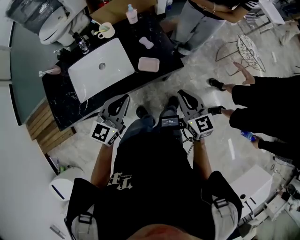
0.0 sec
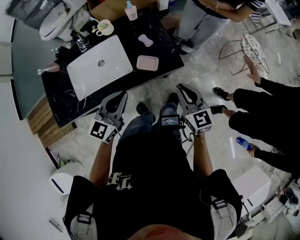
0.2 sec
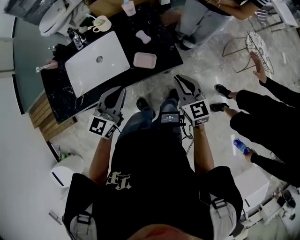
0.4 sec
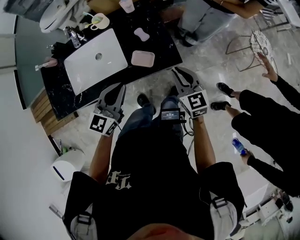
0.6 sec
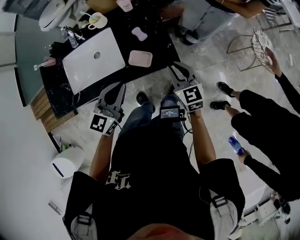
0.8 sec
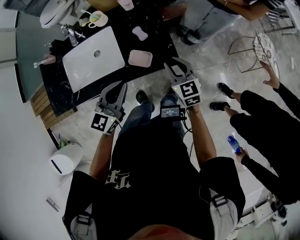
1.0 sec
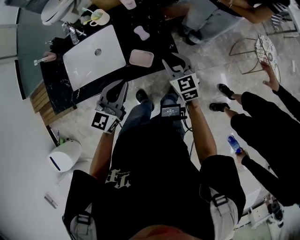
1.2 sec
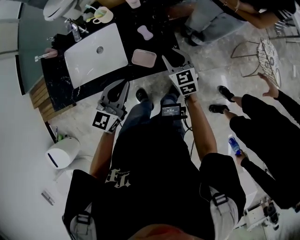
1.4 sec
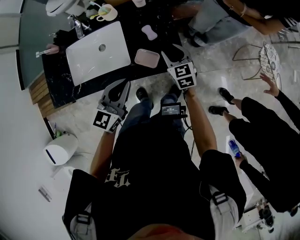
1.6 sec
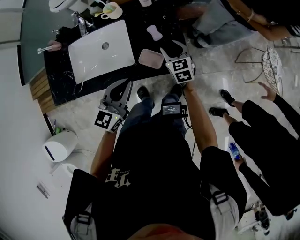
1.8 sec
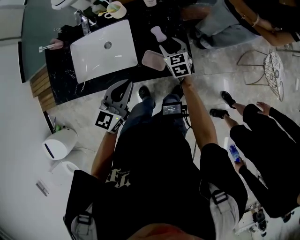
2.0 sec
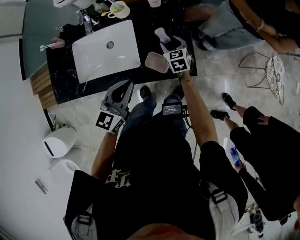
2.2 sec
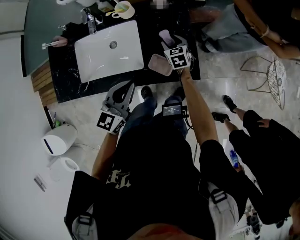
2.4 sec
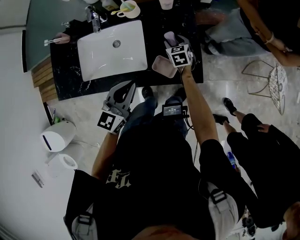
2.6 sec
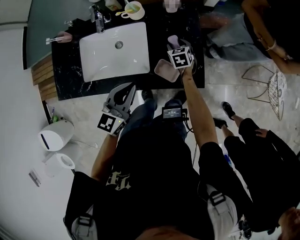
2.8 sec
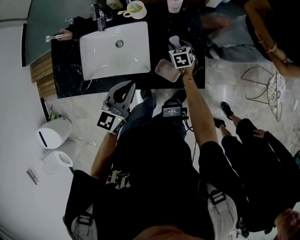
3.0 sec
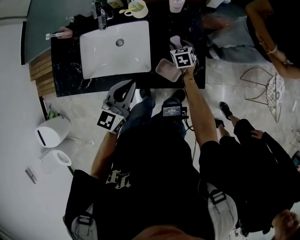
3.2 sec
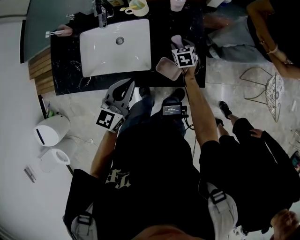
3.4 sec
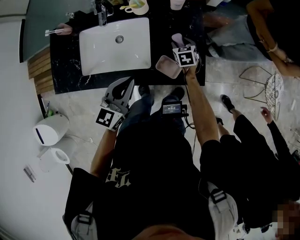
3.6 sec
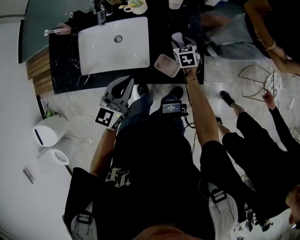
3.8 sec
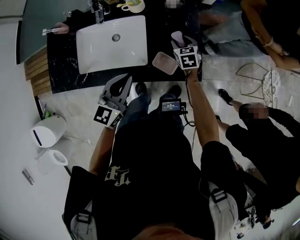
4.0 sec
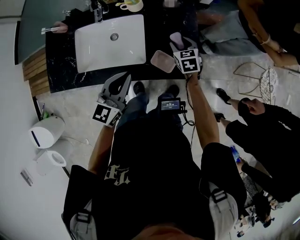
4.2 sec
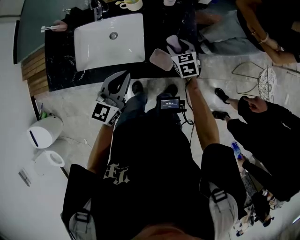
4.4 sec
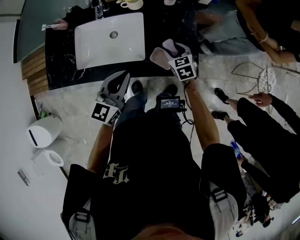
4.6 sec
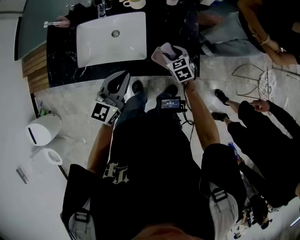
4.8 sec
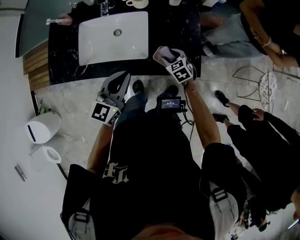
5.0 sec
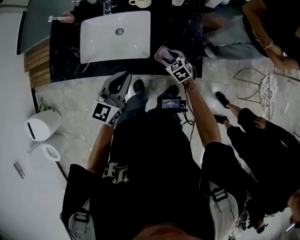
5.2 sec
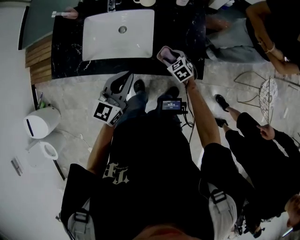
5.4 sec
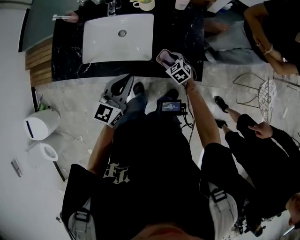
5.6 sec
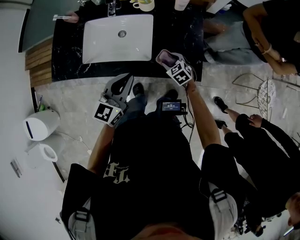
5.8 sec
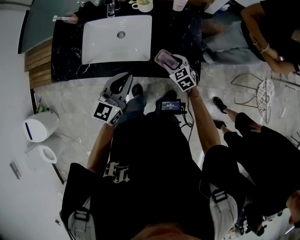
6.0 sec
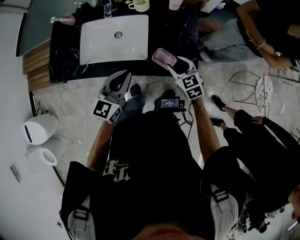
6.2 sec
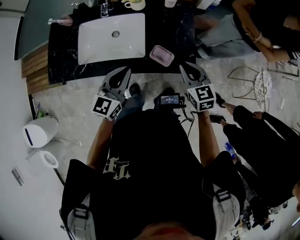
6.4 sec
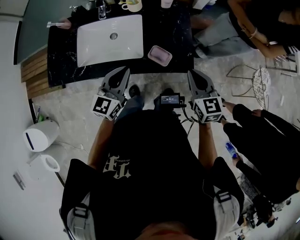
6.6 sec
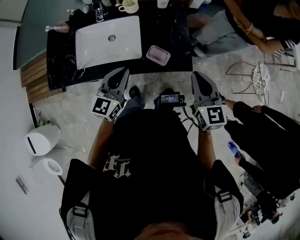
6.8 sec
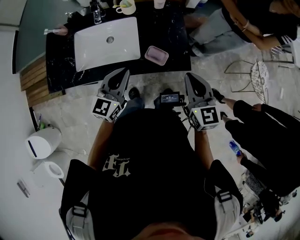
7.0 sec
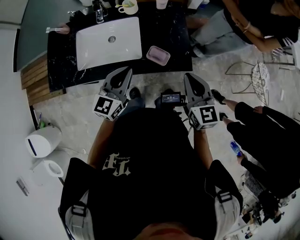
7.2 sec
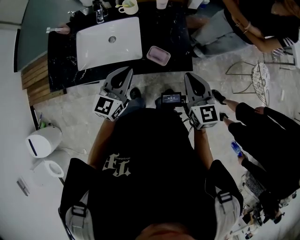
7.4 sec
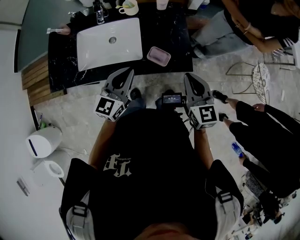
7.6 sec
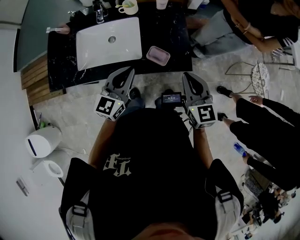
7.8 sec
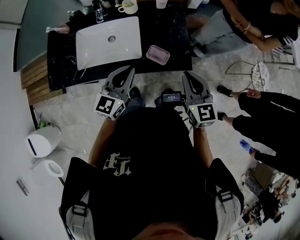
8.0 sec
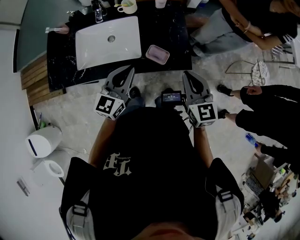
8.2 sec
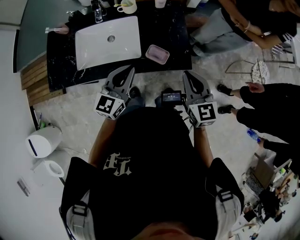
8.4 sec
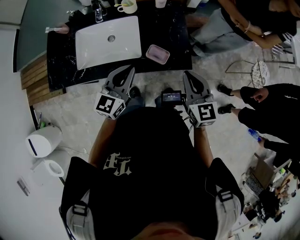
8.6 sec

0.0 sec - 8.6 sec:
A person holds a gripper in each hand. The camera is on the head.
0.0 sec - 1.4 sec: The right gripper travels forward and downward by roughly 25 cm, and opens its fingers; the left gripper goes some 10 cm forward and to the right.
1.4 sec - 2.8 sec: The left gripper is displaced to the left and forward by about 10 cm; the right gripper goes roughly 25 cm forward, downward and to the left, rotates roughly 20 degrees, and opens its fingers.
2.8 sec - 4.4 sec: The right gripper moves upward and backward, about 10 cm.
4.4 sec - 5.8 sec: The right gripper heads downward, to the left and backward, covering approximately 10 cm, and changes its angle by approximately 30 degrees.
5.8 sec - 7.2 sec: The right gripper goes some 30 cm upward and backward, tips its fingers upward by some 30 degrees, and closes.
7.2 sec - 8.6 sec: The two grippers keep their place.

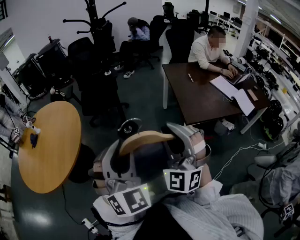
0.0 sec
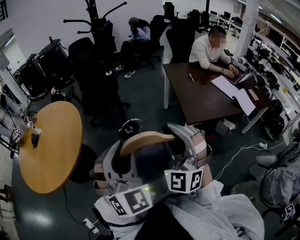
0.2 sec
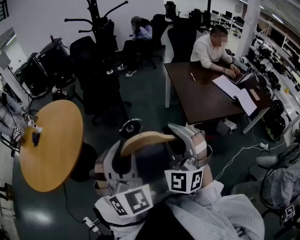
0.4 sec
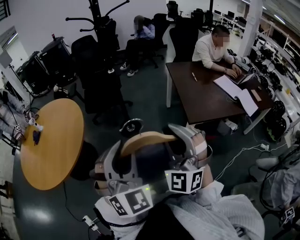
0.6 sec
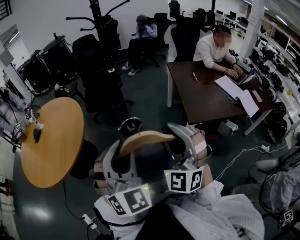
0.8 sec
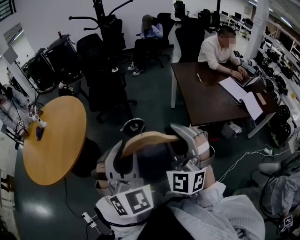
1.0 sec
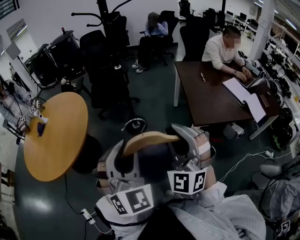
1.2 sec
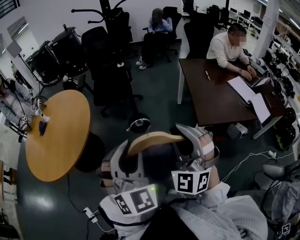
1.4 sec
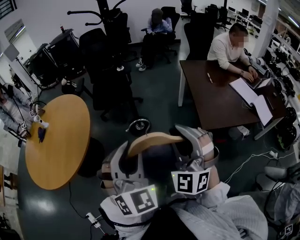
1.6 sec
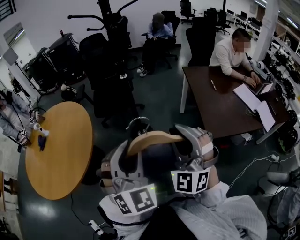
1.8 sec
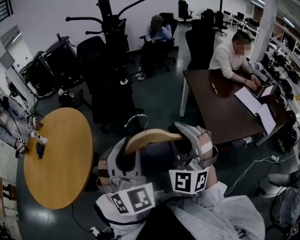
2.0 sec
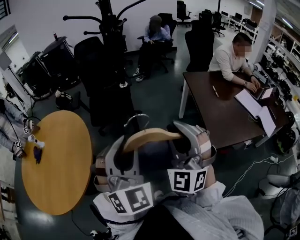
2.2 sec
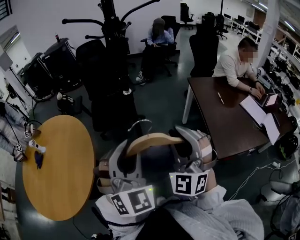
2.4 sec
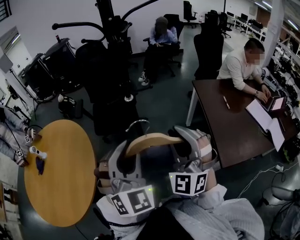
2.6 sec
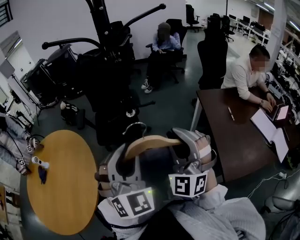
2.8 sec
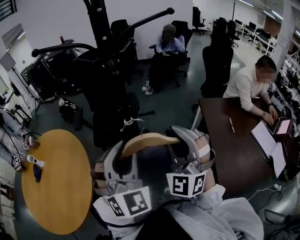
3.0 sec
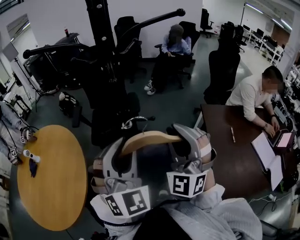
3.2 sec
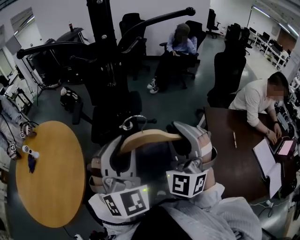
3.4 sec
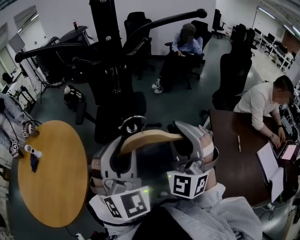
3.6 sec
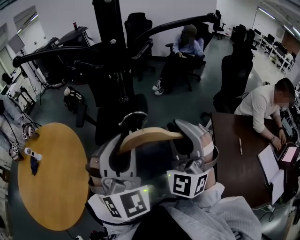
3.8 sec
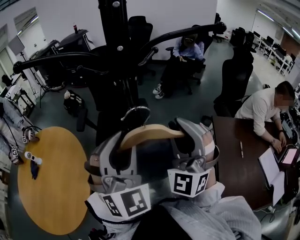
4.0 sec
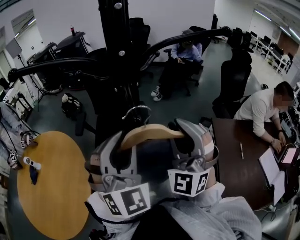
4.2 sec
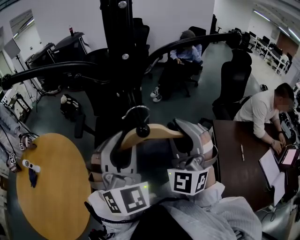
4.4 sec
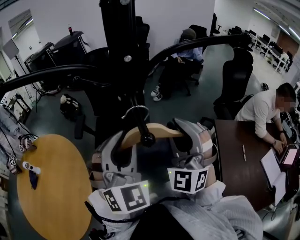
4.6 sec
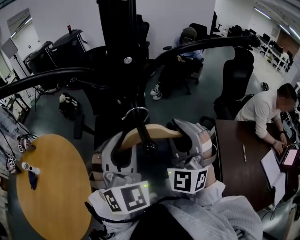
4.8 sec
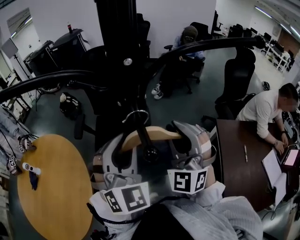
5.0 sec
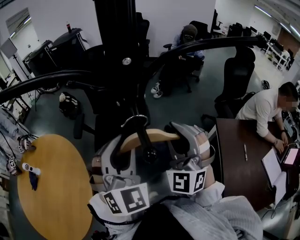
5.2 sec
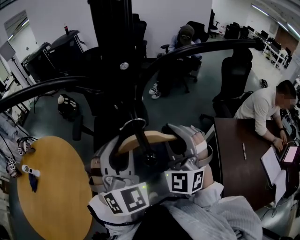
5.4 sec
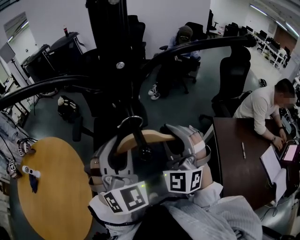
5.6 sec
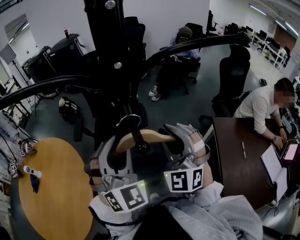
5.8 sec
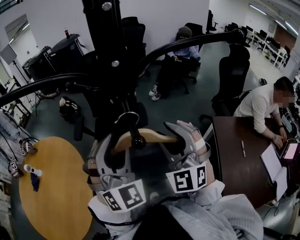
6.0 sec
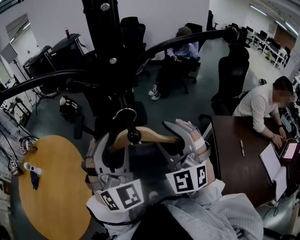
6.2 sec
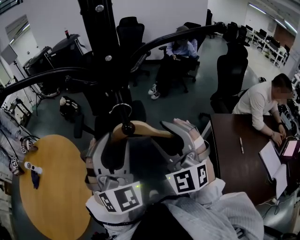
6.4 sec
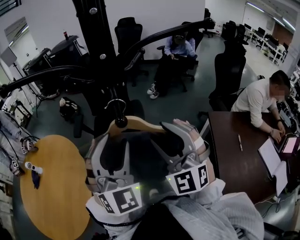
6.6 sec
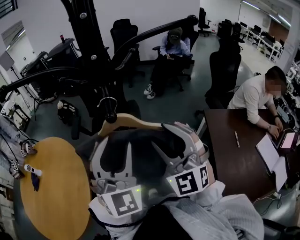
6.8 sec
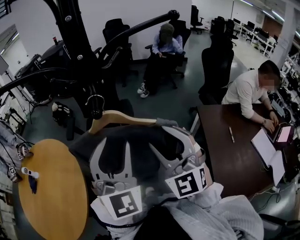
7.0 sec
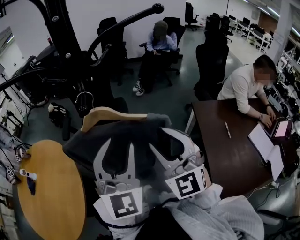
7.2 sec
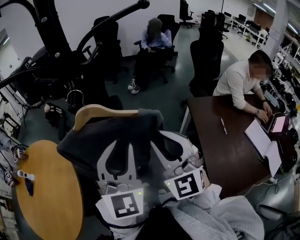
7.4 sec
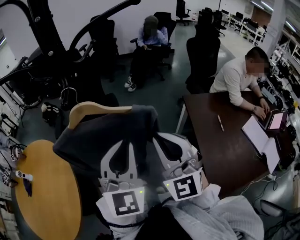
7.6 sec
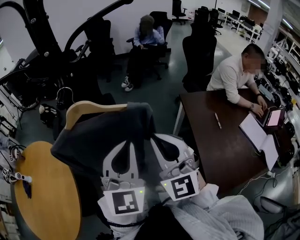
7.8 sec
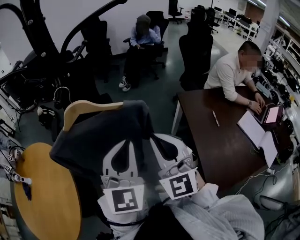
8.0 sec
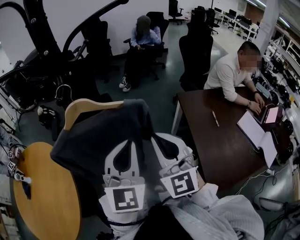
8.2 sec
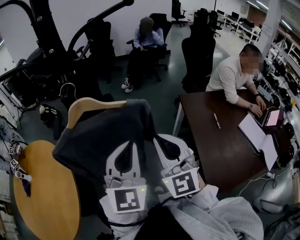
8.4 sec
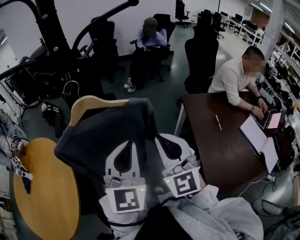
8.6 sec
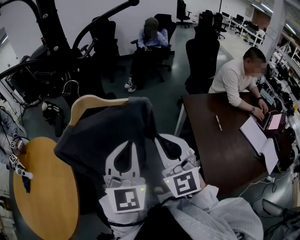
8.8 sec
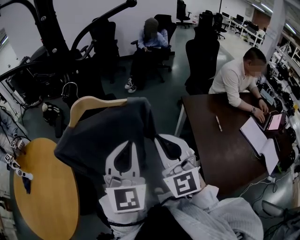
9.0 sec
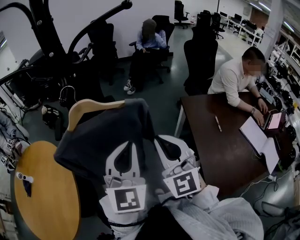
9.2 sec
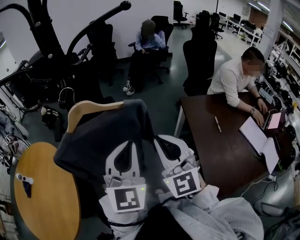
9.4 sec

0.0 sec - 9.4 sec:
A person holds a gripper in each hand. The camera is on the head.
0.0 sec - 1.6 sec: The two grippers go roughly 10 cm forward.
1.6 sec - 3.2 sec: Both grippers are carried forward, about 50 cm.
3.2 sec - 4.8 sec: Both grippers travel together forward, about 20 cm.
4.8 sec - 6.2 sec: The right gripper ends up about 5 cm from where it was, and opens.
6.2 sec - 7.8 sec: The right gripper moves backward and to the right, about 20 cm, changes its angle by roughly 30 degrees, and closes its fingers, while the left gripper heads to the right and backward, covering some 20 cm, turns by about 40 degrees, and closes its fingers.
7.8 sec - 9.4 sec: There are only small adjustments of the grippers.

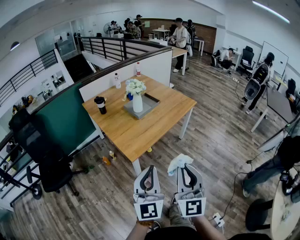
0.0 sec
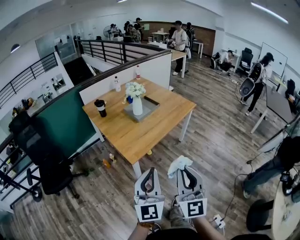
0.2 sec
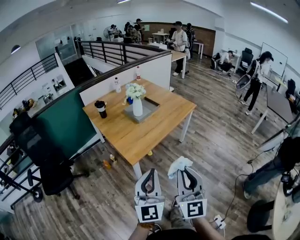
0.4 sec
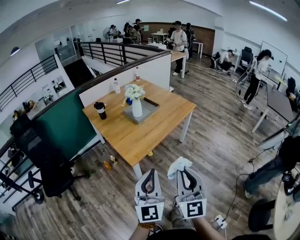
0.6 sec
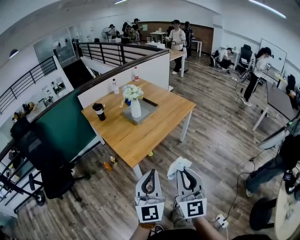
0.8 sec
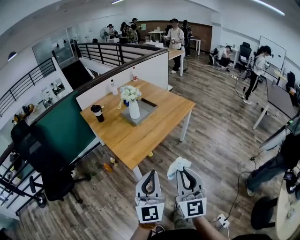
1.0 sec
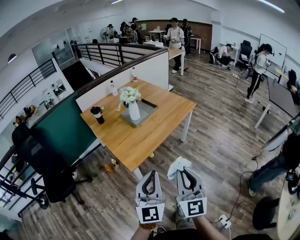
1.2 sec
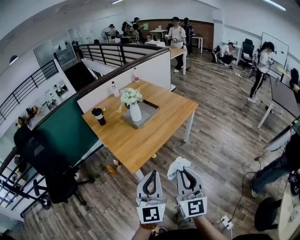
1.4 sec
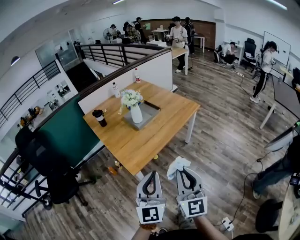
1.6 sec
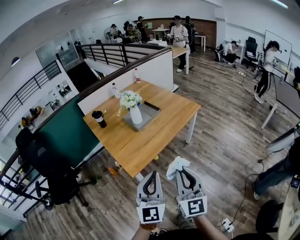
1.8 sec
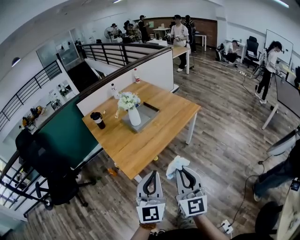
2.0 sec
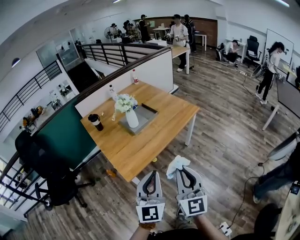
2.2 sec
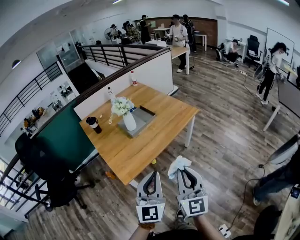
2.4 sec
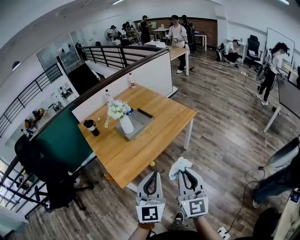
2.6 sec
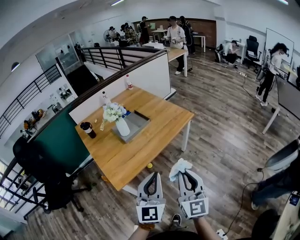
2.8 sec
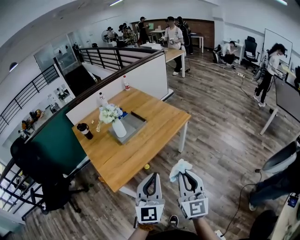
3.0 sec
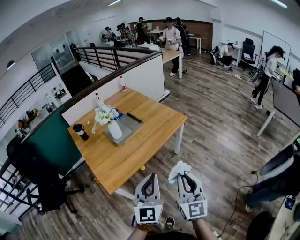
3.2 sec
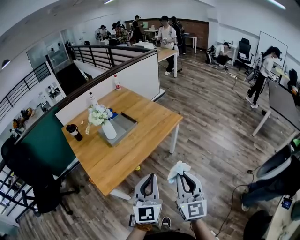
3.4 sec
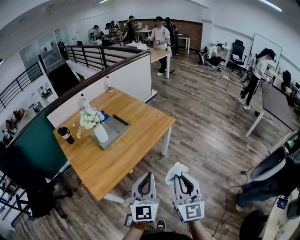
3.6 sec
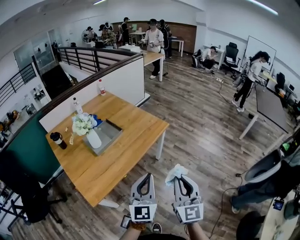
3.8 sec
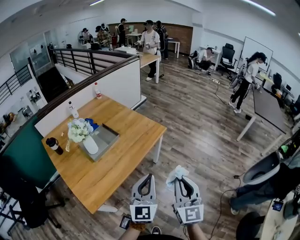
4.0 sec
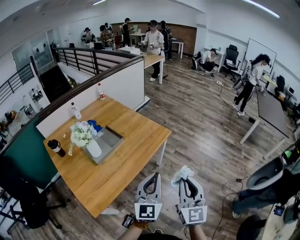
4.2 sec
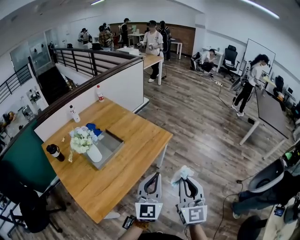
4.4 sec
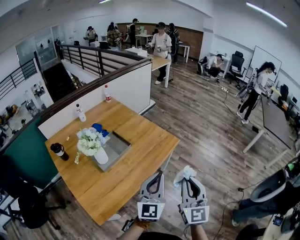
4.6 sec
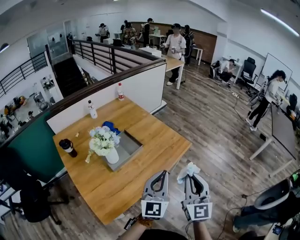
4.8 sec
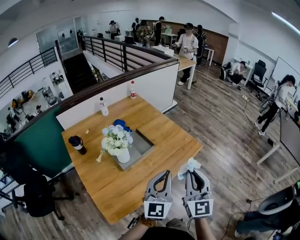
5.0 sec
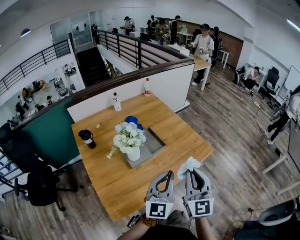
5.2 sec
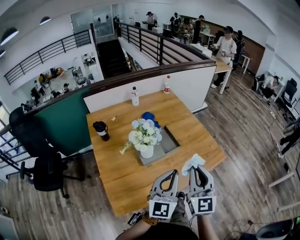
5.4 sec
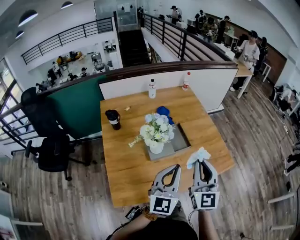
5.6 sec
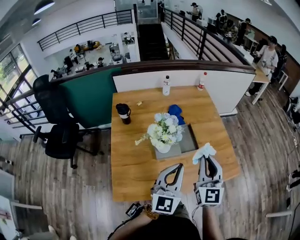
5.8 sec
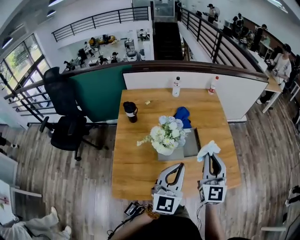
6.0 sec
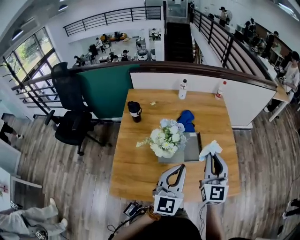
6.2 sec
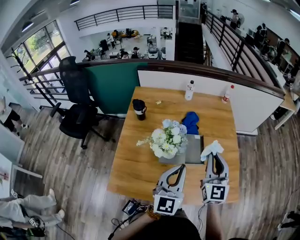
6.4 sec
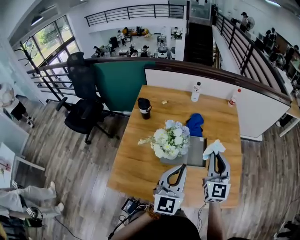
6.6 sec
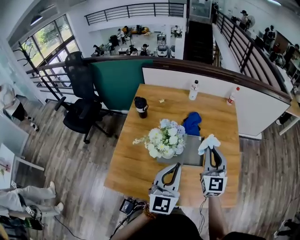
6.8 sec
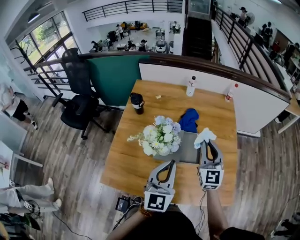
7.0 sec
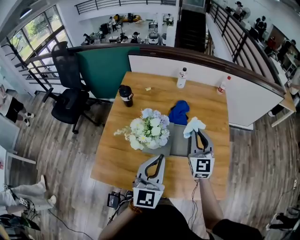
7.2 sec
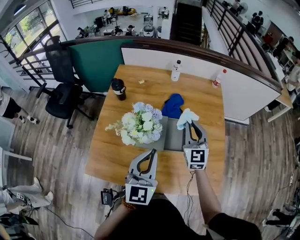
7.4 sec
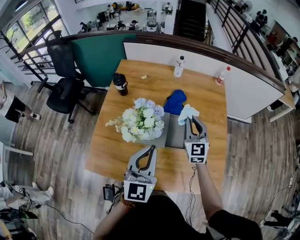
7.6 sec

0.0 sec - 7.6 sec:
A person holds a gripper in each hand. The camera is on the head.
0.0 sec - 1.6 sec: The left gripper moves forward and to the right, roughly 10 cm, while the right gripper moves forward, approximately 10 cm.
1.6 sec - 3.0 sec: Both grippers move to the right and forward, approximately 20 cm.
3.0 sec - 4.6 sec: The grippers both shift forward by approximately 25 cm.
4.6 sec - 6.0 sec: The left gripper changes place by roughly 25 cm, and swivels about 40 degrees, while the right gripper shifts by approximately 40 cm, and turns by about 40 degrees.
6.0 sec - 7.6 sec: The right gripper moves forward and downward, some 25 cm, and changes its angle by approximately 20 degrees, while the left gripper moves forward, some 5 cm.
